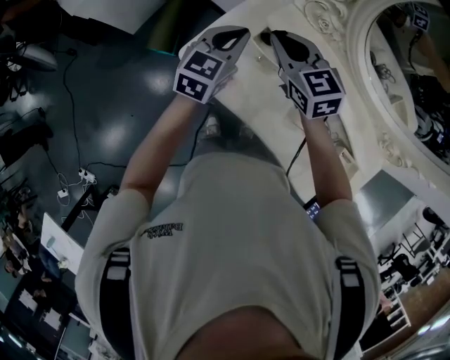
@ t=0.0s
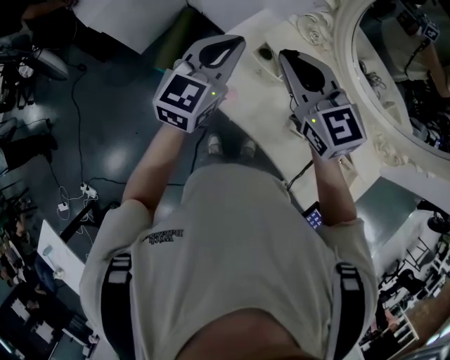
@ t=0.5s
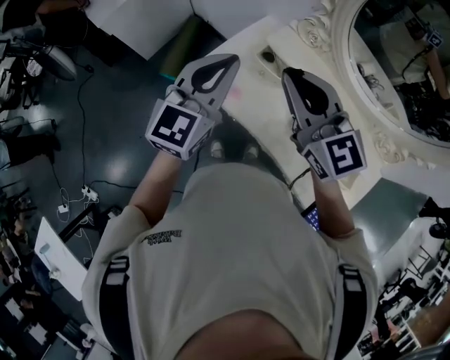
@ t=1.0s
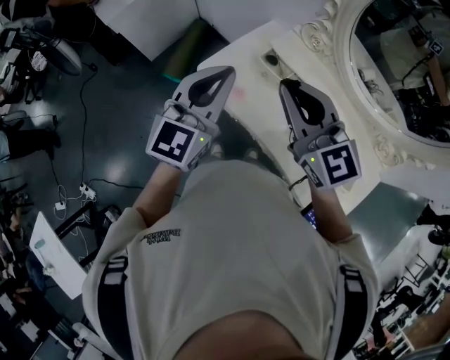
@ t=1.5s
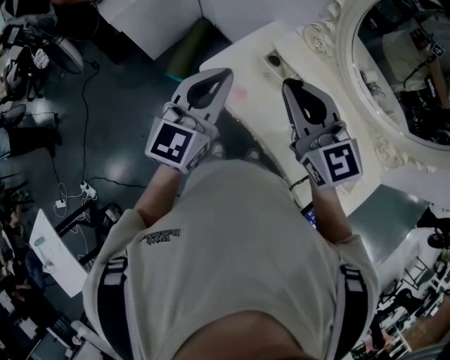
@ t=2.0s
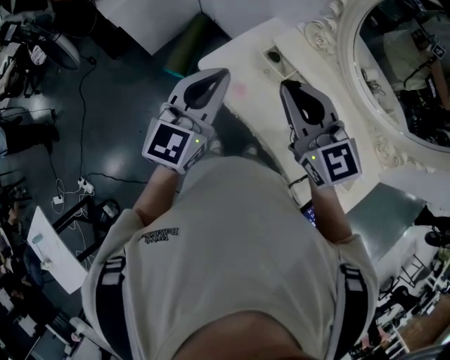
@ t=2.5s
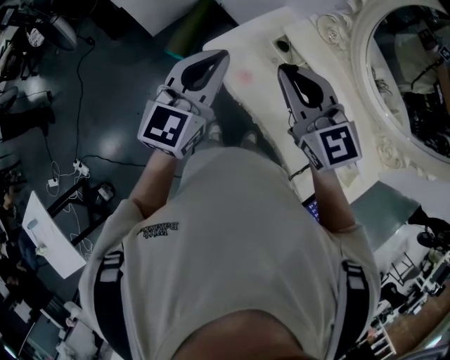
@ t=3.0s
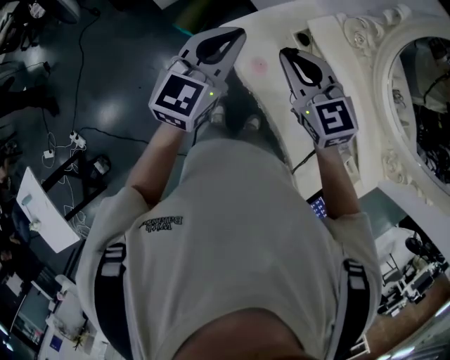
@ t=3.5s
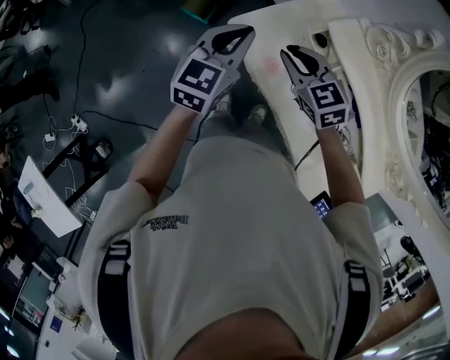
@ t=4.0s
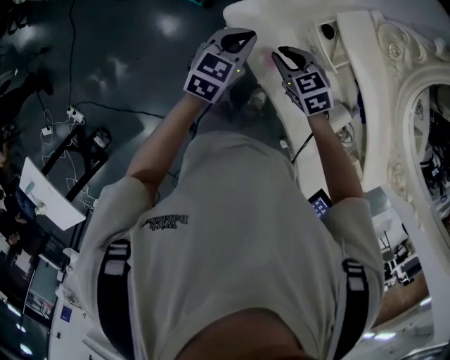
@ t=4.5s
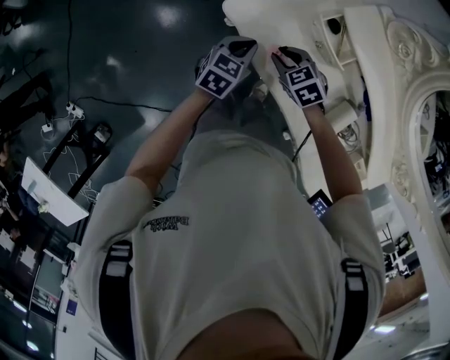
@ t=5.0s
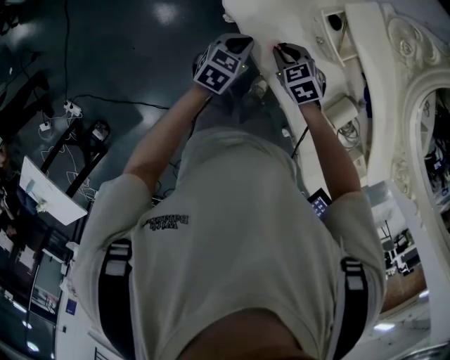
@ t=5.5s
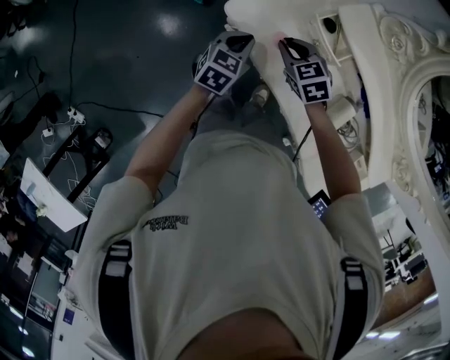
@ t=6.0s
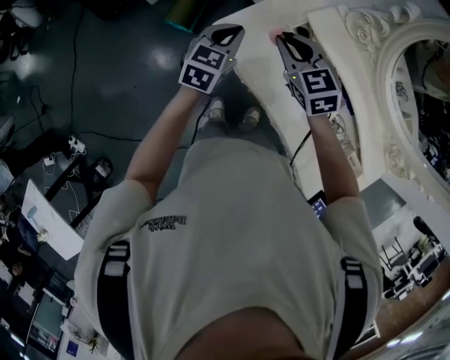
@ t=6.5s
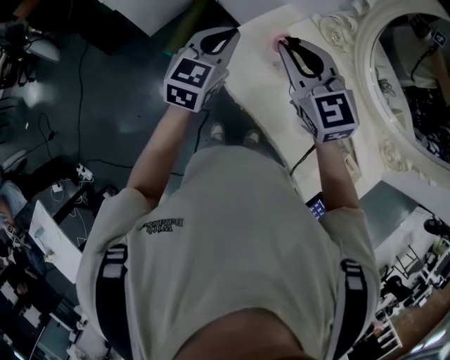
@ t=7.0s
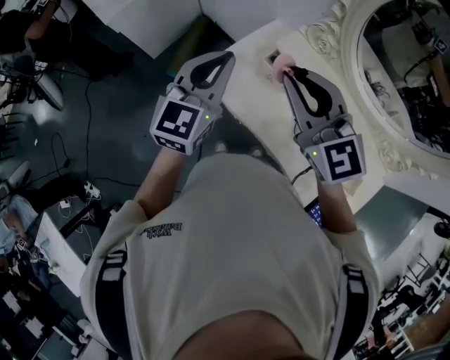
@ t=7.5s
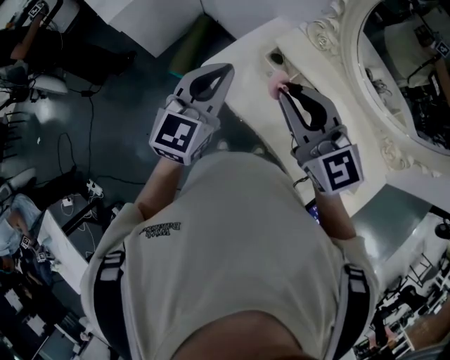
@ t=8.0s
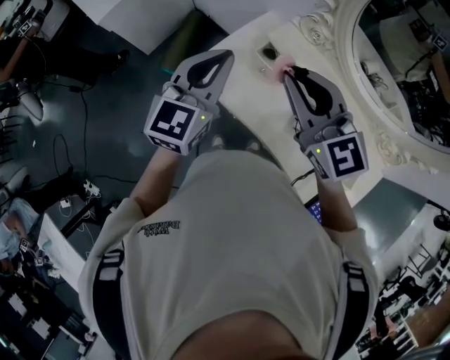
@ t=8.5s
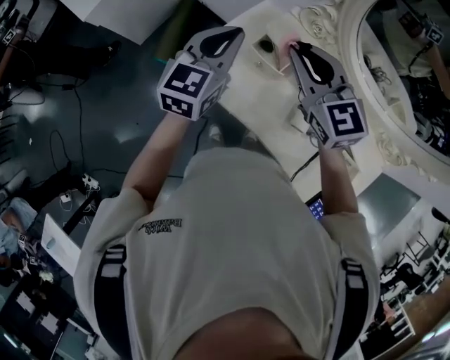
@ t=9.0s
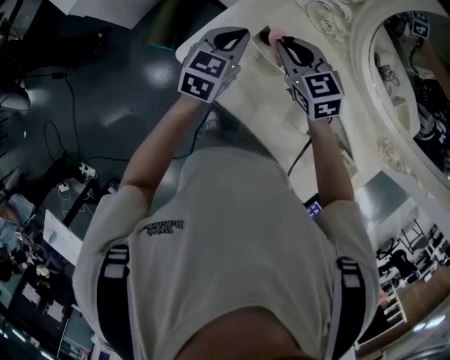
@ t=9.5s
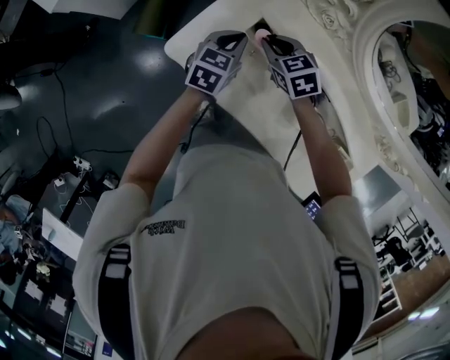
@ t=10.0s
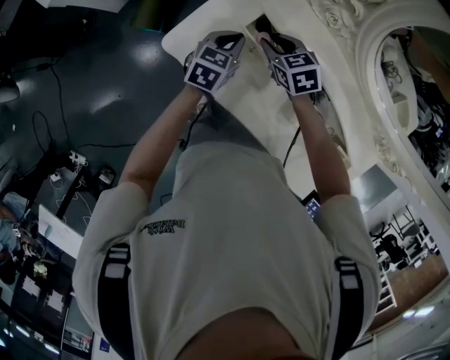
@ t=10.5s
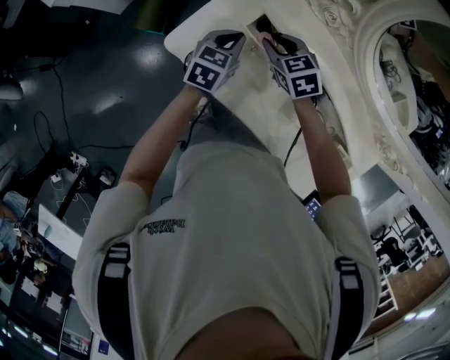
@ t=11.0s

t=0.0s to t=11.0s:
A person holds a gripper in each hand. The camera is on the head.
t=0.0s to t=2.0s: Both grippers travel together backward and upward, some 25 cm. The left gripper swivels roughly 20 degrees. Meanwhile the right gripper turns by approximately 20 degrees.
t=2.0s to t=3.5s: The right gripper heads downward, forward and to the left, covering about 15 cm. Meanwhile the left gripper shifts approximately 10 cm forward and downward.
t=3.5s to t=5.5s: Both grippers travel together downward, roughly 35 cm. The left gripper tips its fingers downward by approximately 30 degrees. The right gripper tips its fingers downward by some 40 degrees.
t=5.5s to t=7.5s: Both grippers travel together upward, approximately 40 cm. The left gripper points its fingers roughly 40 degrees further upward, while the right gripper points its fingers roughly 50 degrees further upward.
t=7.5s to t=9.0s: The right gripper heads forward, downward and to the right, covering some 15 cm, while the left gripper shifts roughly 10 cm forward, to the right and downward.
t=9.0s to t=11.0s: Both grippers travel together downward, approximately 25 cm. The right gripper points its fingers about 30 degrees further downward; the left gripper rotates some 30 degrees.

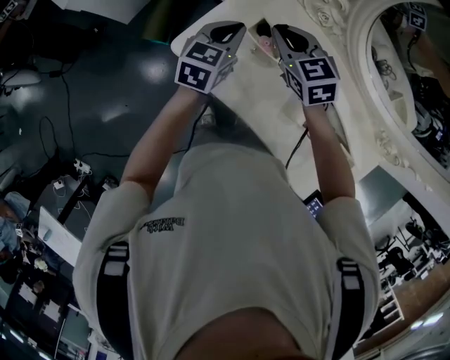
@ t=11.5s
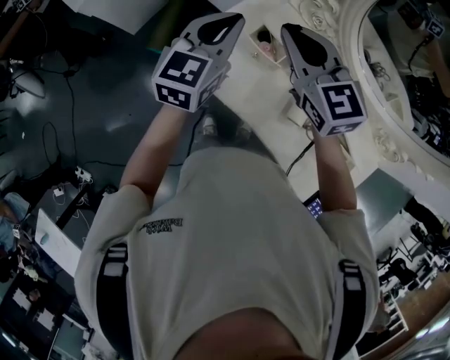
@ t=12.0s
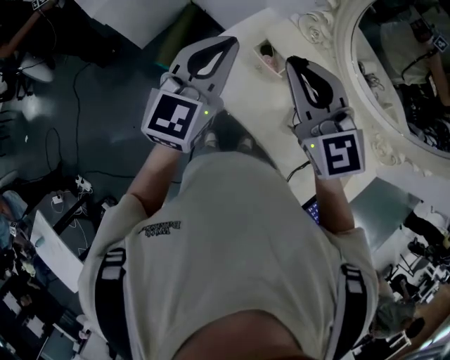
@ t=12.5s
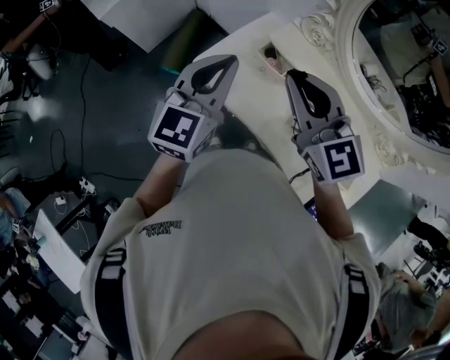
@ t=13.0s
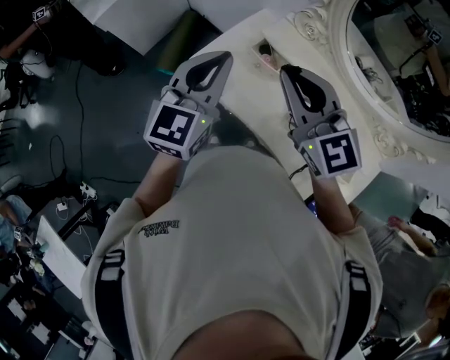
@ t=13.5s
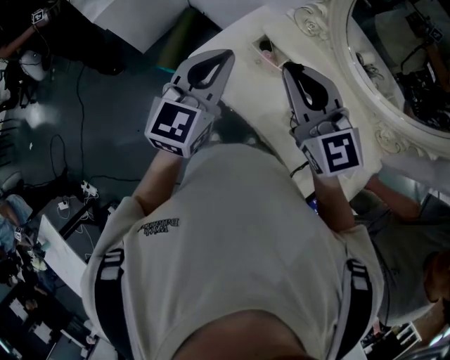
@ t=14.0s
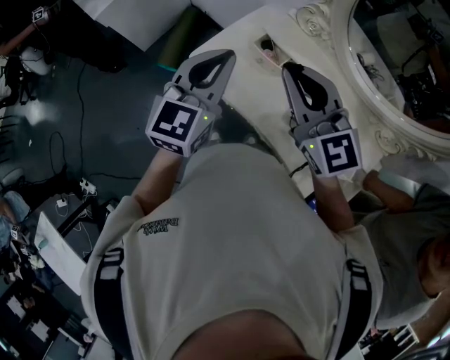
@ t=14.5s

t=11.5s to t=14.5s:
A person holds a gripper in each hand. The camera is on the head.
t=11.5s to t=13.0s: Both grippers travel together upward and backward, about 25 cm. The right gripper swivels some 30 degrees. The left gripper changes its angle by approximately 20 degrees.
t=13.0s to t=14.5s: Neither gripper changes place.

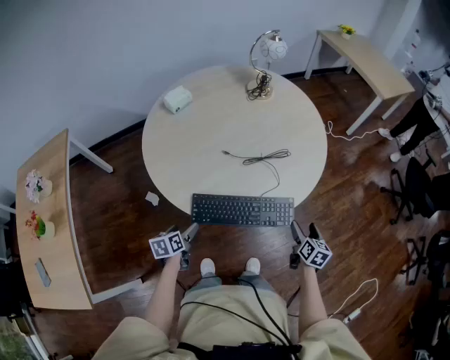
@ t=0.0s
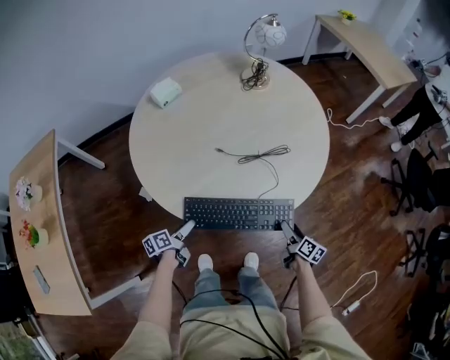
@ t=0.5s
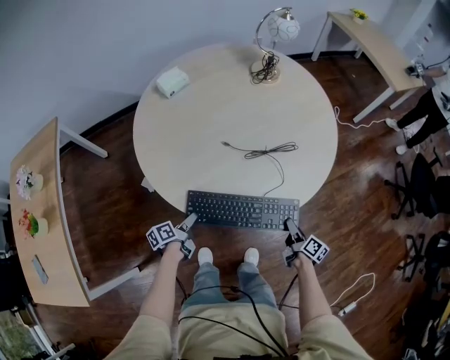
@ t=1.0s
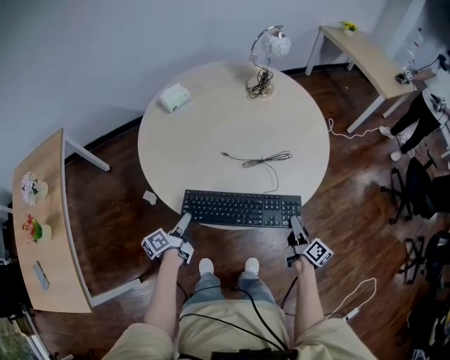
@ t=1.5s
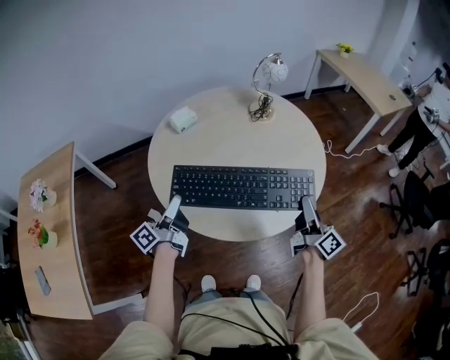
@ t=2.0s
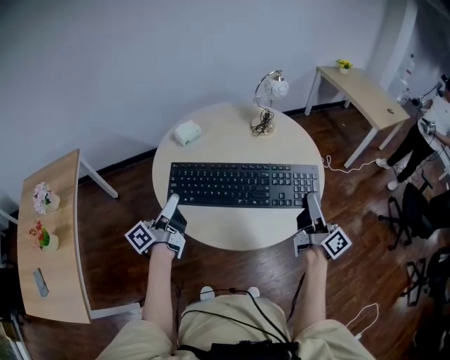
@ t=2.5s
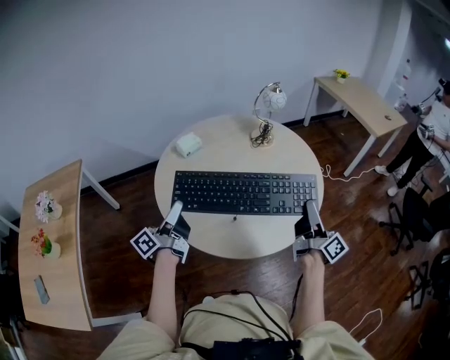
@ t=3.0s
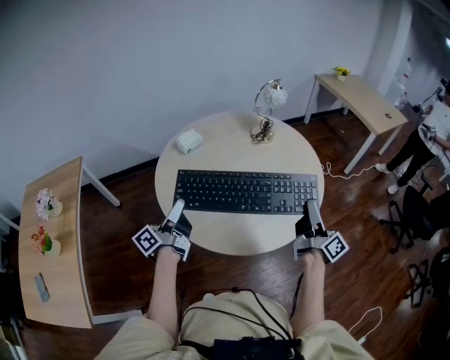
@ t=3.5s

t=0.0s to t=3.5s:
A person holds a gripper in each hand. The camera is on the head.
t=0.0s to t=2.0s: The right gripper is displaced upward by approximately 20 cm, points its fingers approximately 50 degrees further upward, and closes its fingers.
t=2.0s to t=3.5s: The right gripper goes some 5 cm upward.

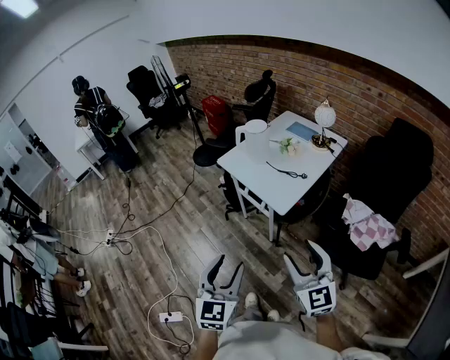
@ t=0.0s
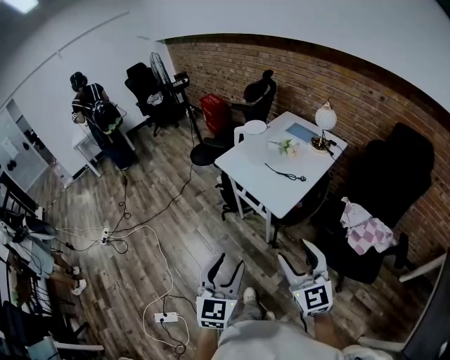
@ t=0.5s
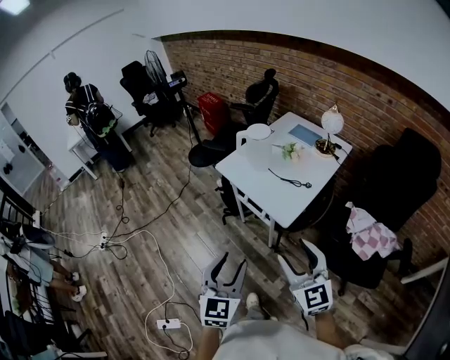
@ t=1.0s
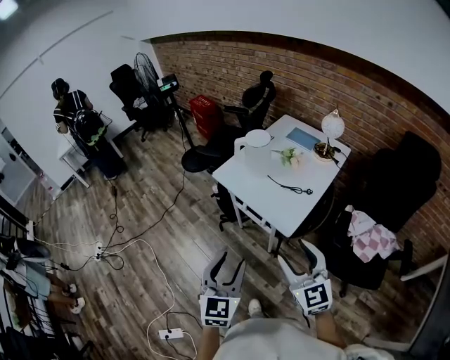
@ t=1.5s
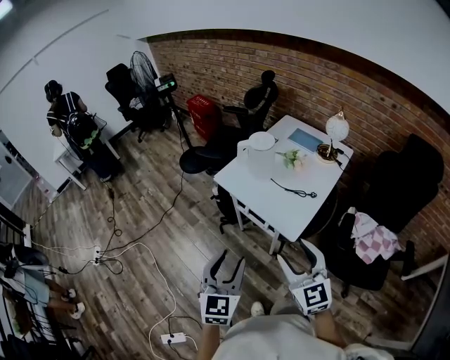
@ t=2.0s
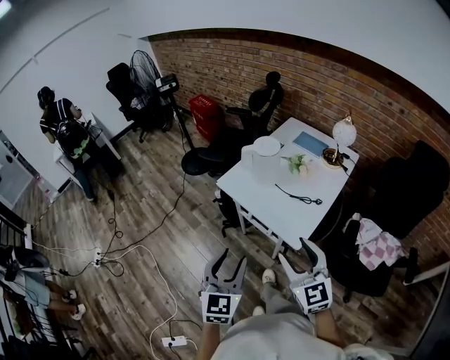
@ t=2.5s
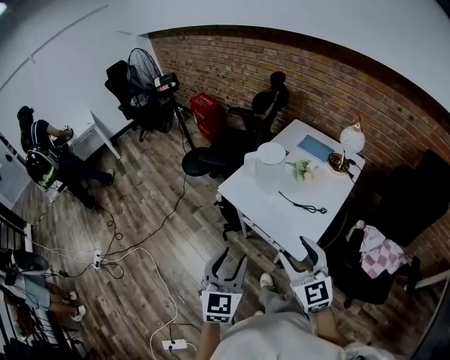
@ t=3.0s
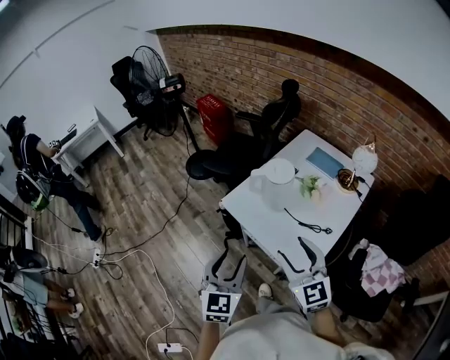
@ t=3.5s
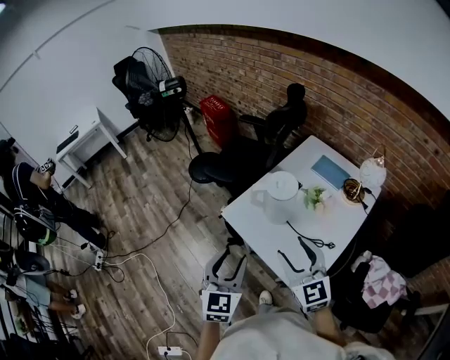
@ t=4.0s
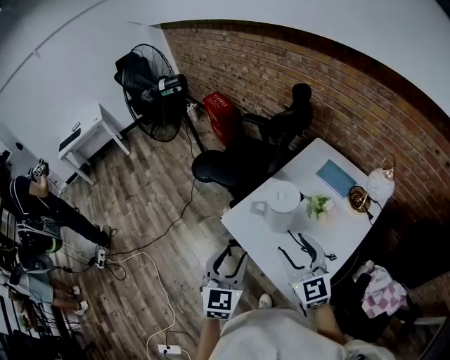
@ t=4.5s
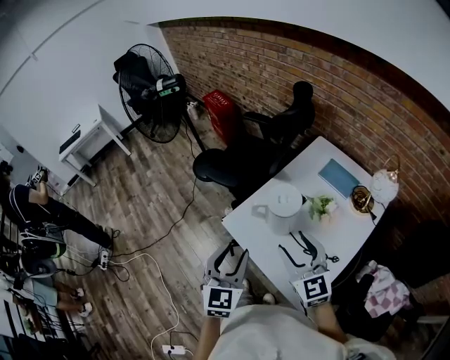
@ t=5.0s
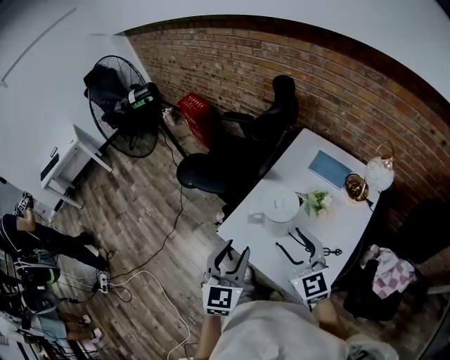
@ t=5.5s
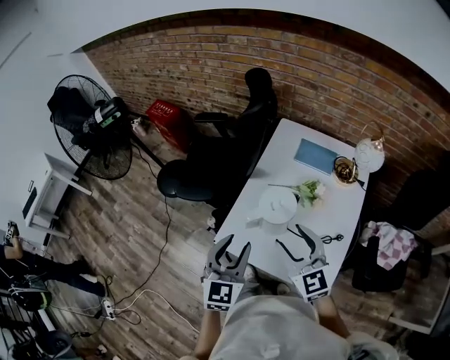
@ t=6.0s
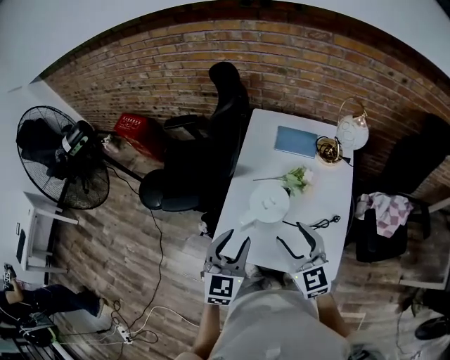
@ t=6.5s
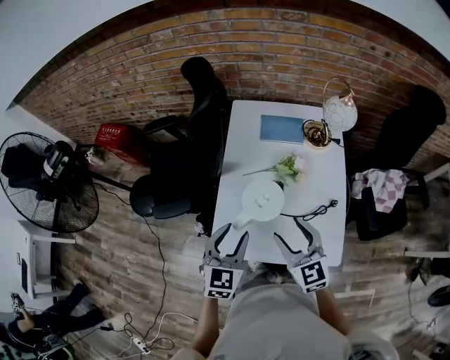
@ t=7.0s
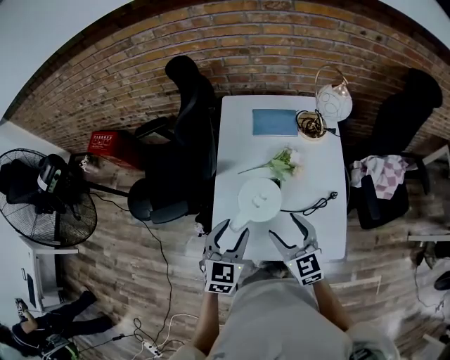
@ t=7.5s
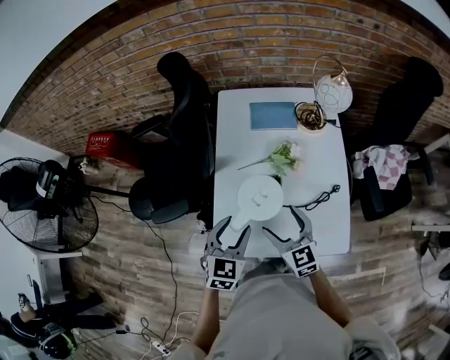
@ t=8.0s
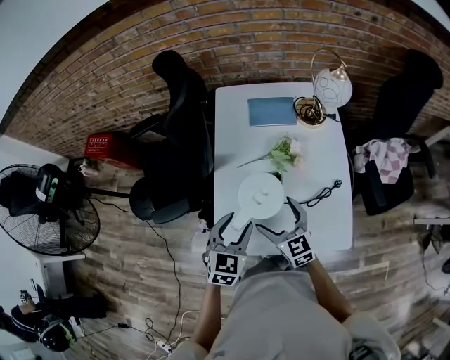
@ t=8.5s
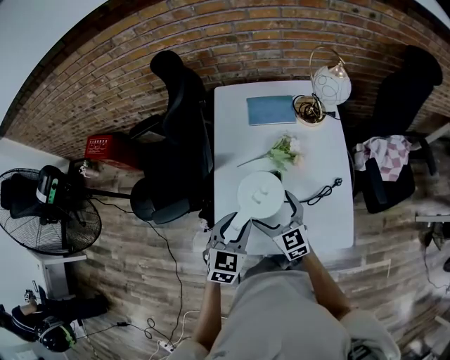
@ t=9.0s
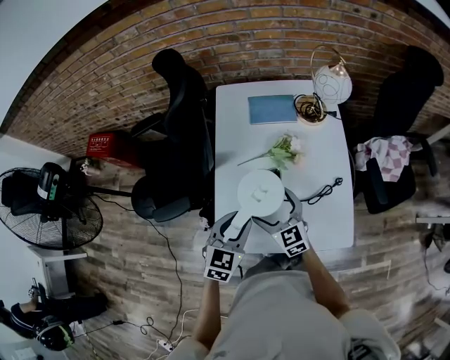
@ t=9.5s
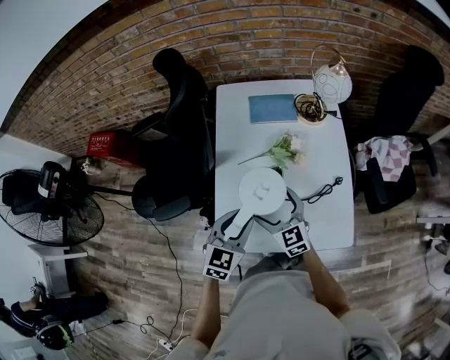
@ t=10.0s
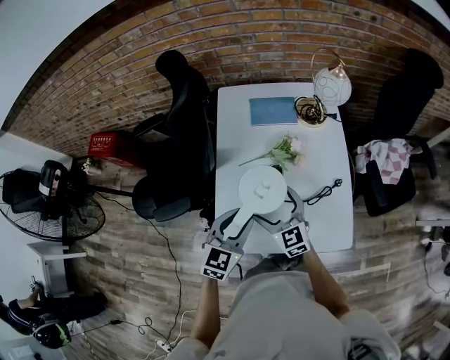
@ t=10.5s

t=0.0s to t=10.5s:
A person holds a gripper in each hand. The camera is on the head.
t=0.0s to t=2.0s: The right gripper moves forward and to the left, some 20 cm. The left gripper shifts roughly 20 cm forward.
t=2.0s to t=4.0s: Both grippers move forward, roughly 30 cm.
t=4.0s to t=6.5s: The right gripper moves some 20 cm, and changes its angle by roughly 30 degrees. Meanwhile the left gripper changes place by roughly 25 cm, and rotates about 40 degrees.
t=6.5s to t=8.5s: The right gripper goes roughly 15 cm downward, changes its angle by approximately 20 degrees, and opens. The left gripper shifts some 10 cm downward and forward, and turns by some 20 degrees.
t=8.5s to t=10.5s: There are only small adjustments of the grippers.
